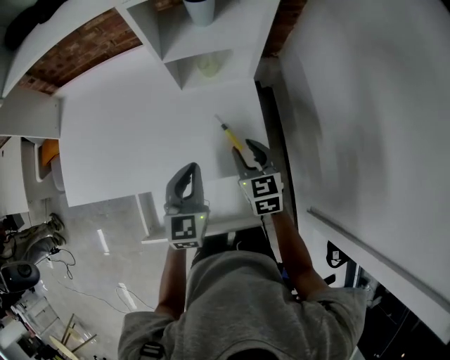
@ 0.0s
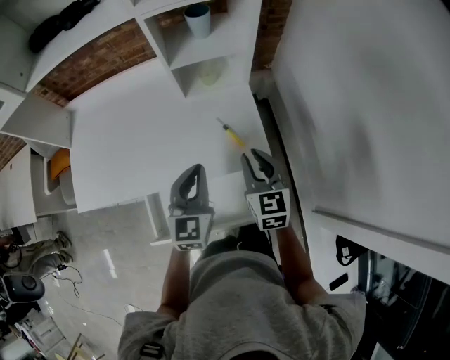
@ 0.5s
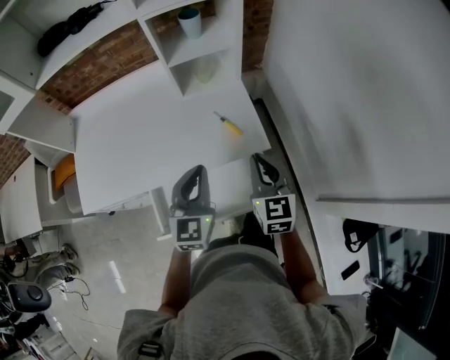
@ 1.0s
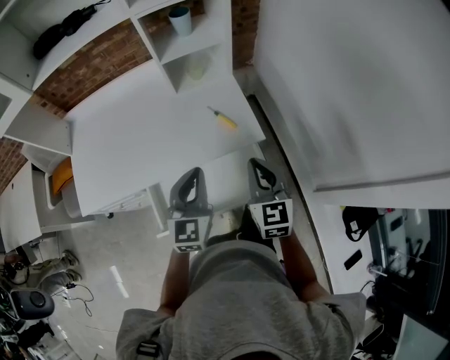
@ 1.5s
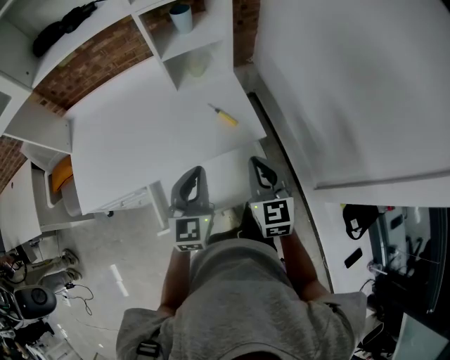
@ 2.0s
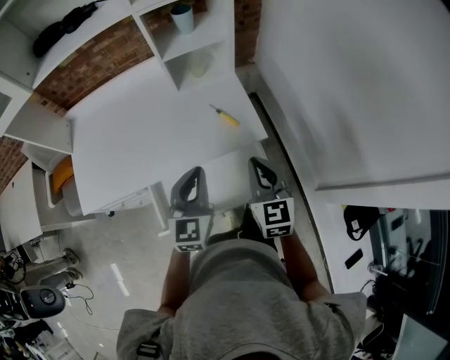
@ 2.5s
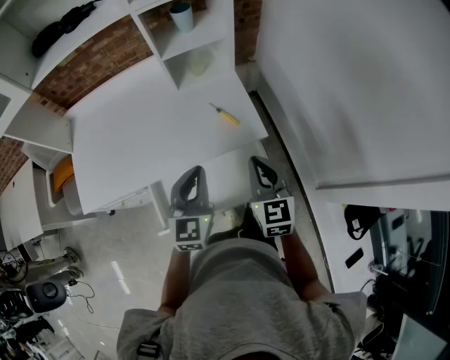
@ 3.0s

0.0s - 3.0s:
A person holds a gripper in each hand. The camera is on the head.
0.0s - 1.5s: The grippers both shift backward and upward by approximately 20 cm. The right gripper rotates some 20 degrees, and closes up.
1.5s - 3.0s: The two grippers keep their place.

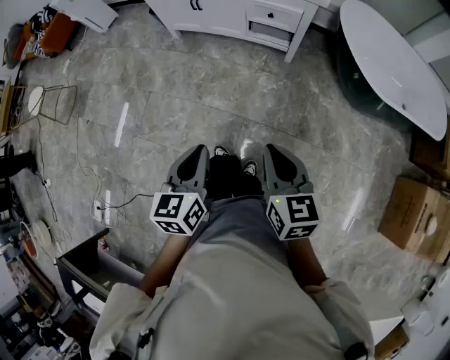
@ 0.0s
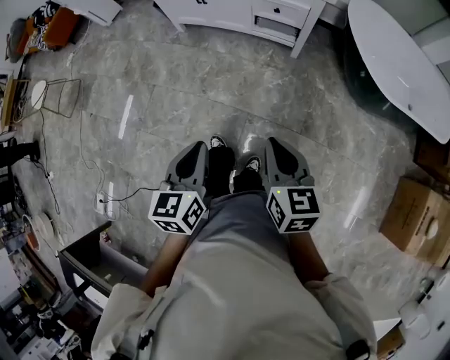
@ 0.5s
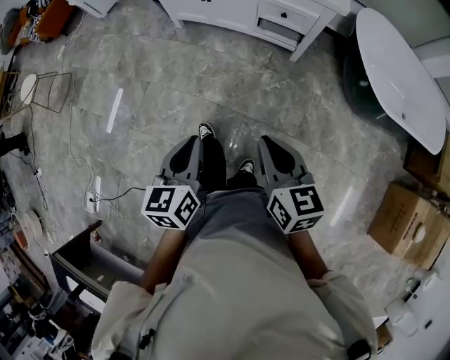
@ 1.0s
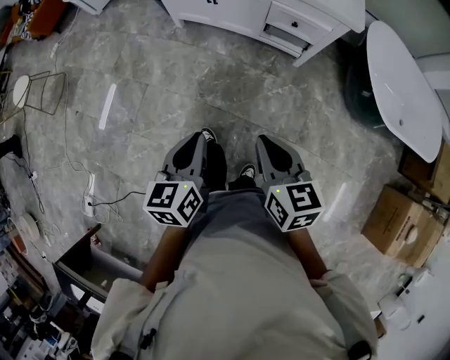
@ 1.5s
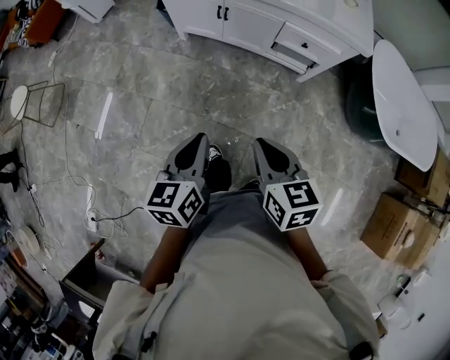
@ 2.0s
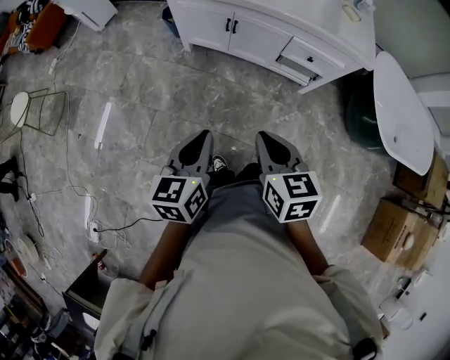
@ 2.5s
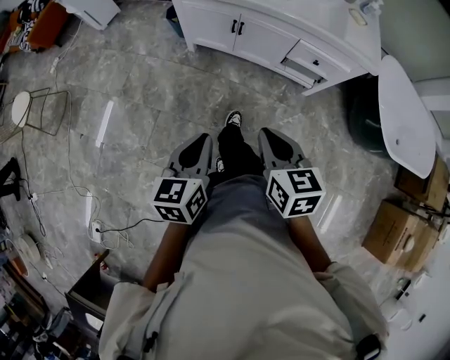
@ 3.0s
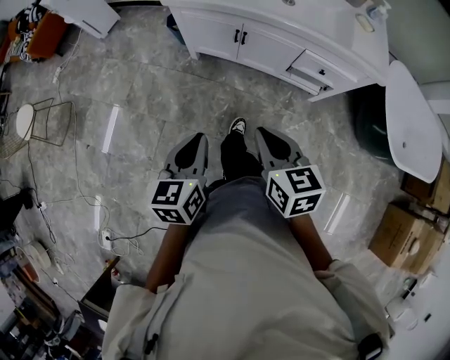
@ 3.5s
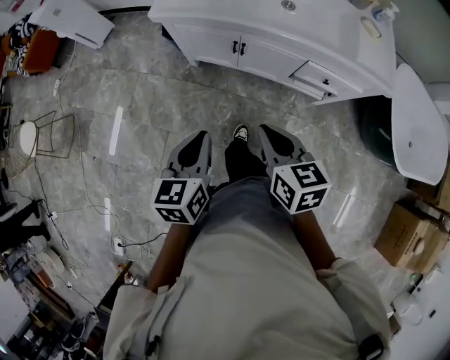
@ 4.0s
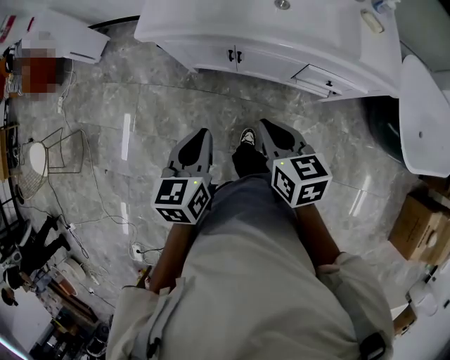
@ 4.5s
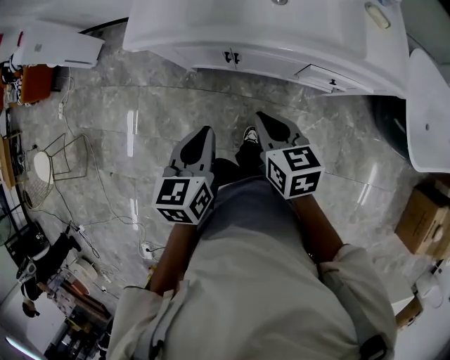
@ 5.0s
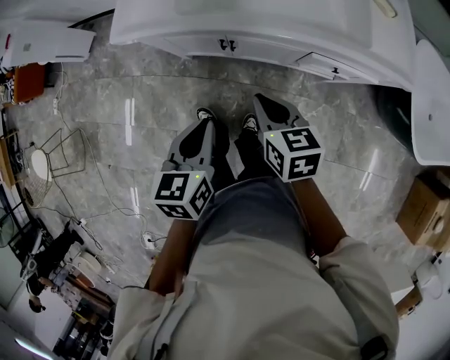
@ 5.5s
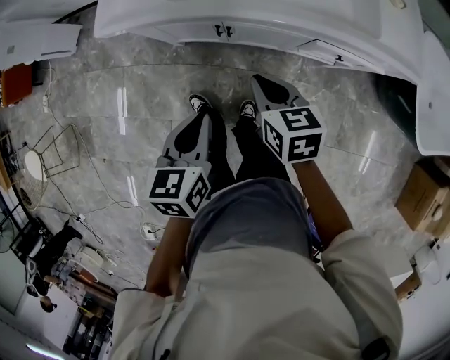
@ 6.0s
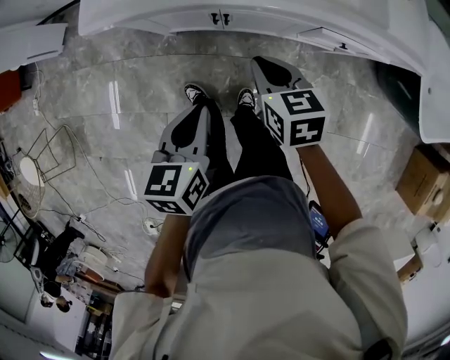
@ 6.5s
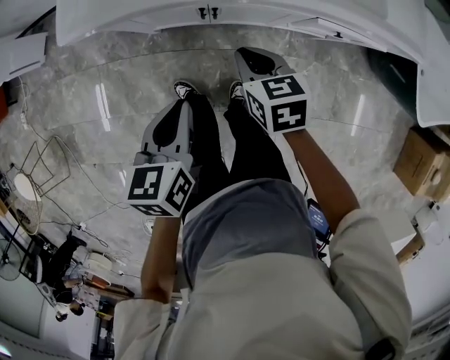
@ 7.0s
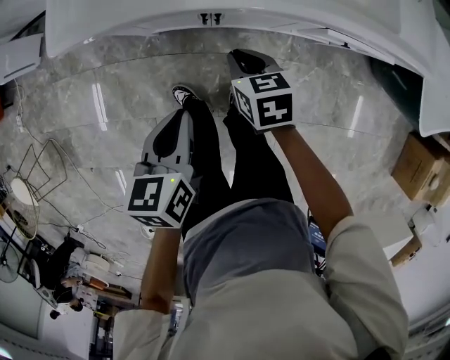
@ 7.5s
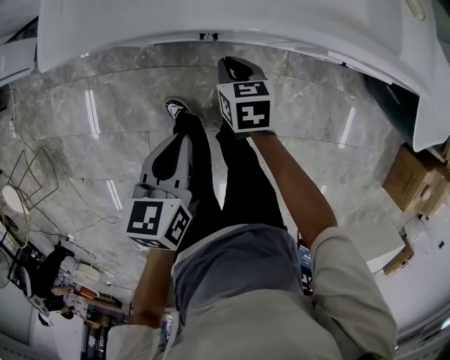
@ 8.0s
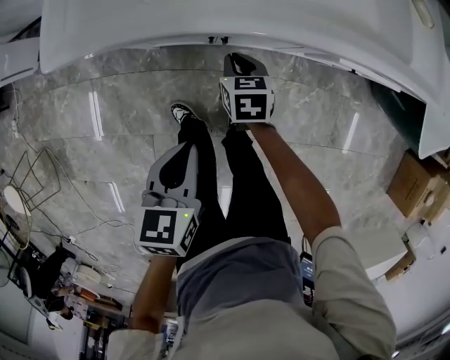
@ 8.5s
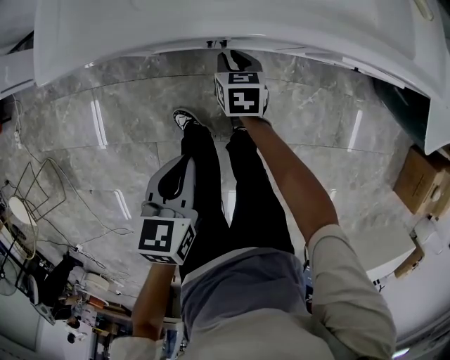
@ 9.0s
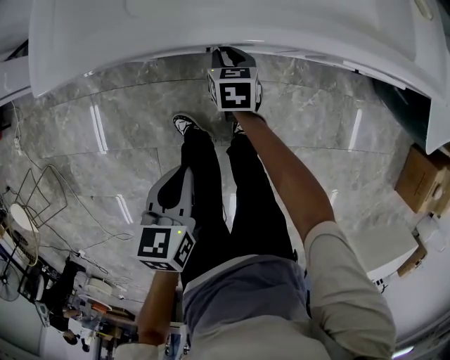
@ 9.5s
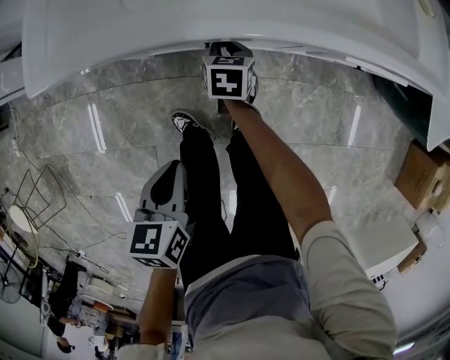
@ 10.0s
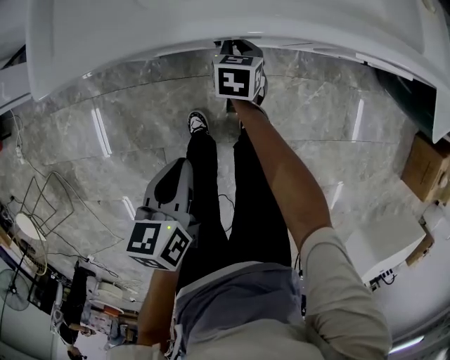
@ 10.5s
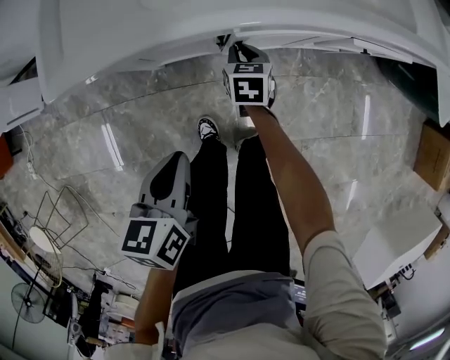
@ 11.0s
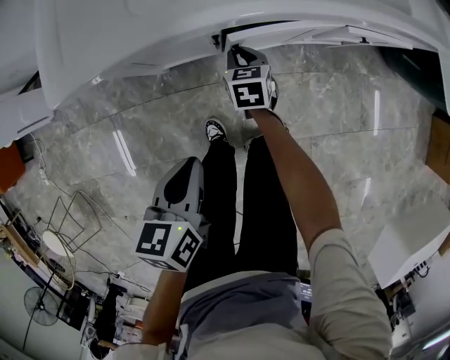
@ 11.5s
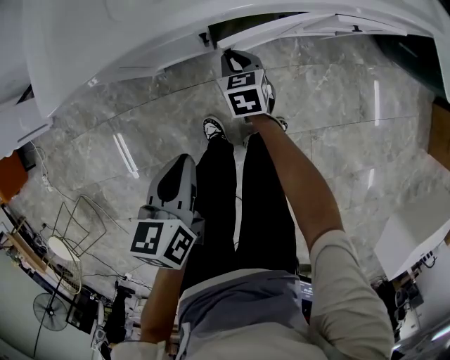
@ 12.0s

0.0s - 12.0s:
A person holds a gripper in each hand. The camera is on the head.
0.0s - 2.0s: Both grippers move forward and to the left, some 30 cm.
2.0s - 4.0s: The grippers both shift forward by roughly 25 cm.
4.0s - 6.0s: Both grippers travel together forward and downward, about 20 cm.
6.0s - 8.0s: The right gripper shifts some 20 cm downward and forward, while the left gripper travels downward and forward by approximately 10 cm.
8.0s - 10.0s: The right gripper goes some 15 cm downward and forward. The left gripper travels downward by about 5 cm.
10.0s - 12.0s: The right gripper is displaced backward by some 5 cm.

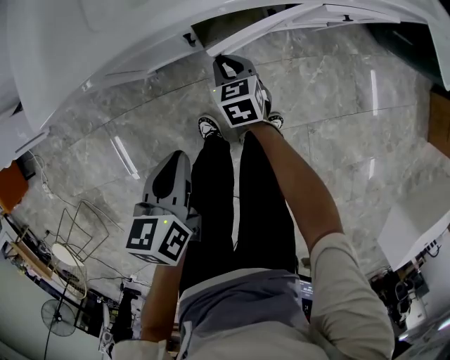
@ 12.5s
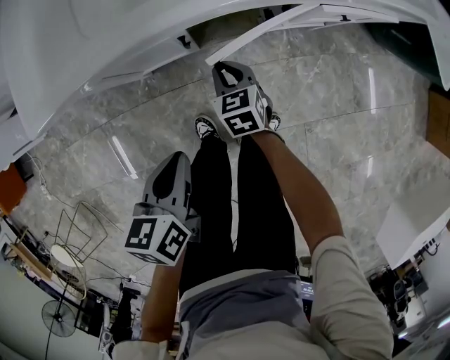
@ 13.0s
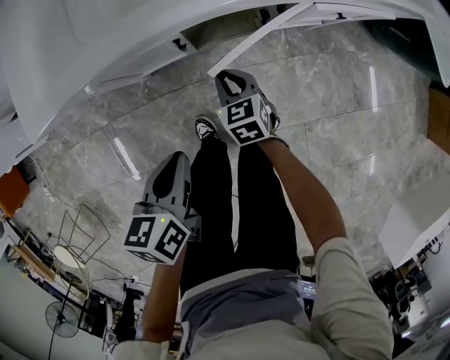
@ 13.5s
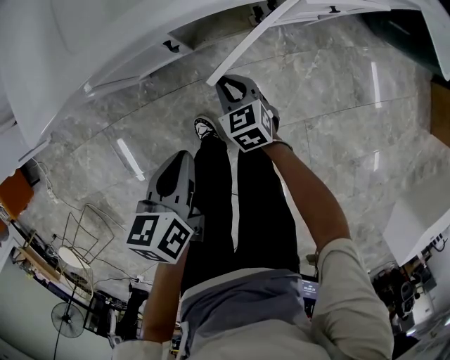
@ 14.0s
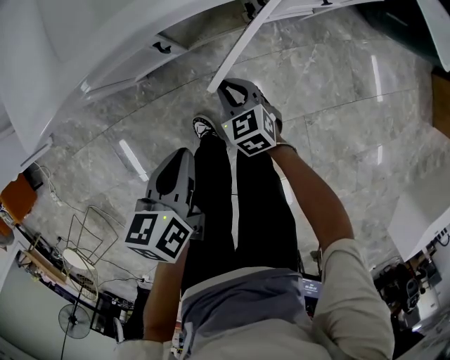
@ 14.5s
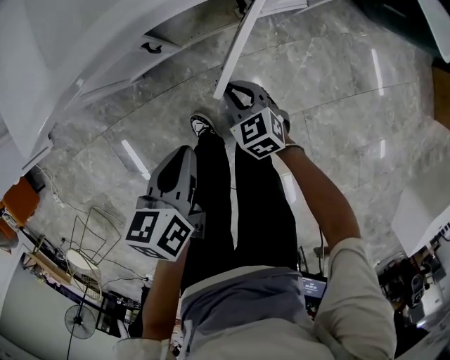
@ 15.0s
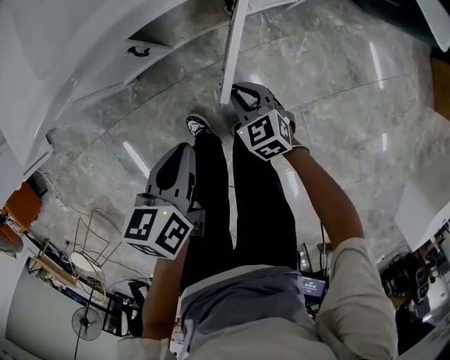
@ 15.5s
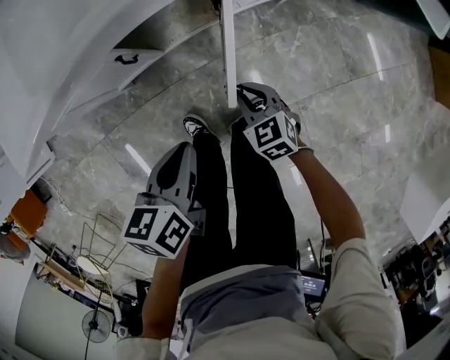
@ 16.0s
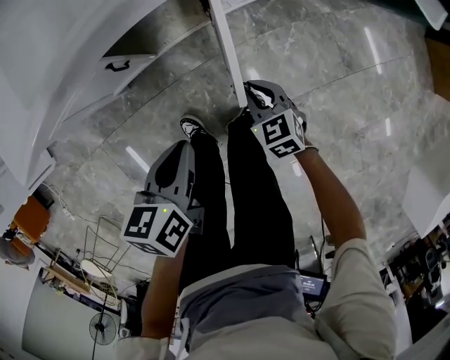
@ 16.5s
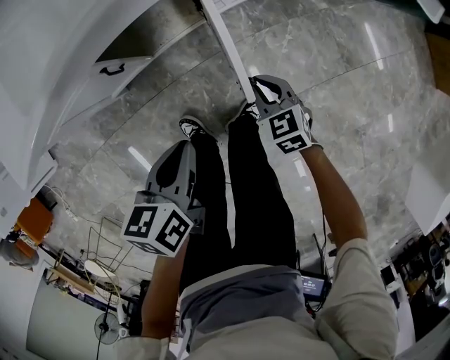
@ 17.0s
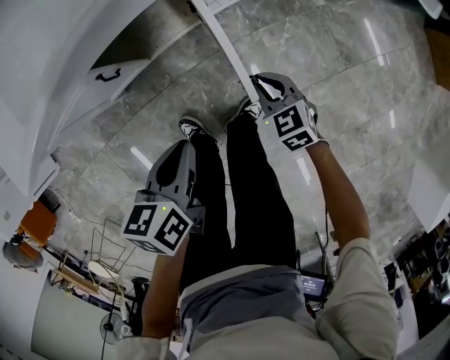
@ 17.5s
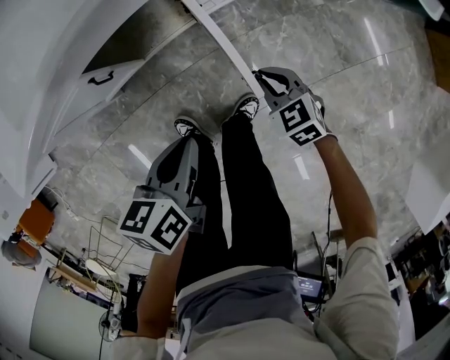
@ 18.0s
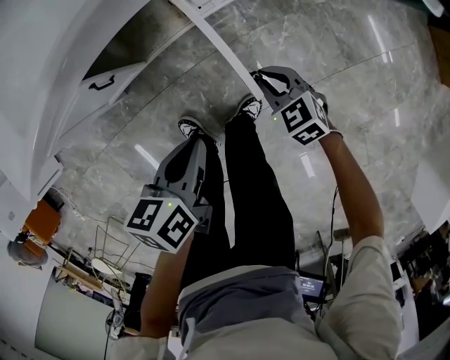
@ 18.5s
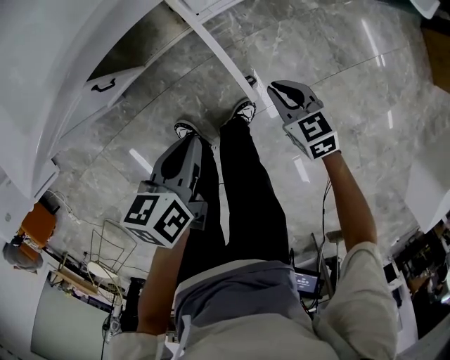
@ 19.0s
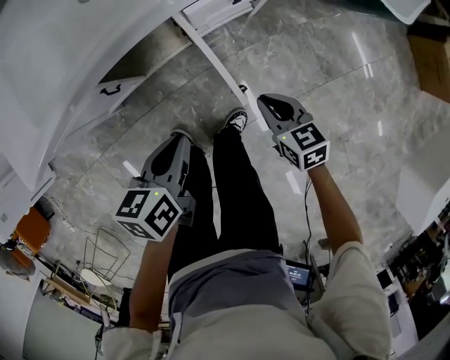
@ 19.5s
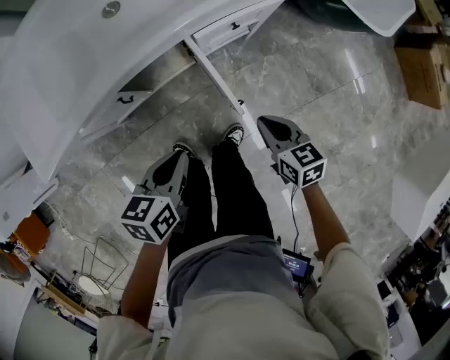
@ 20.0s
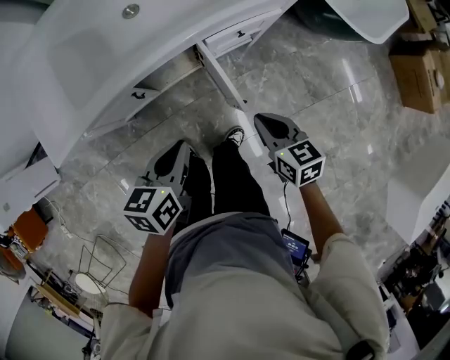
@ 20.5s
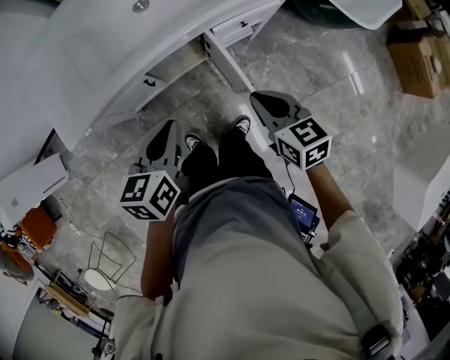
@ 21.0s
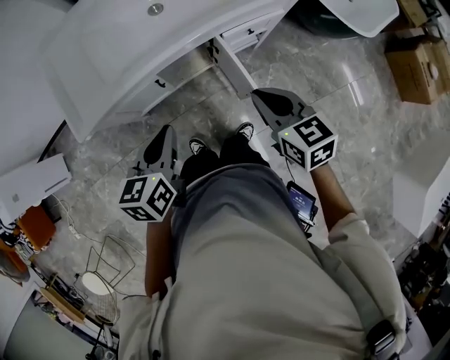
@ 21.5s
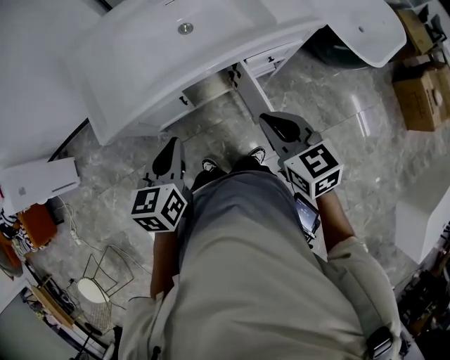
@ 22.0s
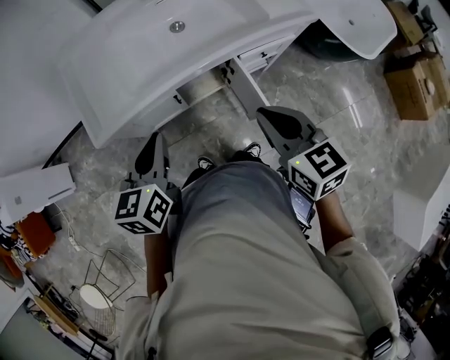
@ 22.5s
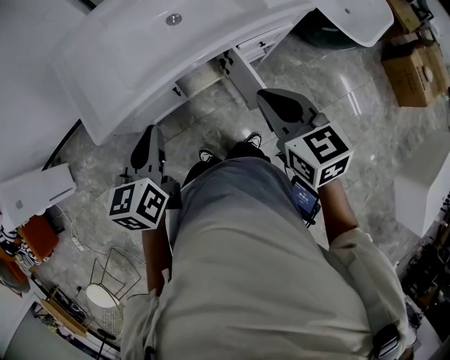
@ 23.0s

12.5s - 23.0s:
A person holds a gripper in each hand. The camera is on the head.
12.5s - 14.5s: The right gripper moves backward and to the right, approximately 10 cm. Meanwhile the left gripper travels to the right by approximately 5 cm.
14.5s - 16.5s: The left gripper heads to the right, covering about 10 cm; the right gripper shifts about 15 cm to the right.
16.5s - 19.0s: Both grippers move to the right, about 10 cm.
19.0s - 21.0s: The left gripper is displaced upward and to the left by approximately 25 cm; the right gripper moves upward, approximately 30 cm.
21.0s - 23.0s: The left gripper heads to the left and upward, covering some 15 cm, while the right gripper goes about 20 cm upward and to the left.

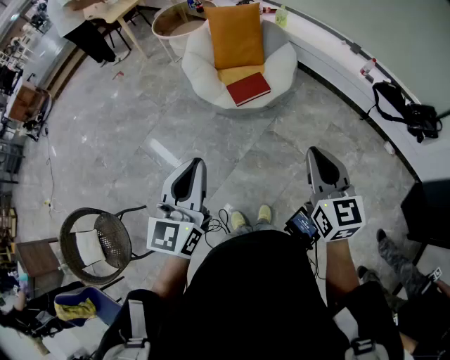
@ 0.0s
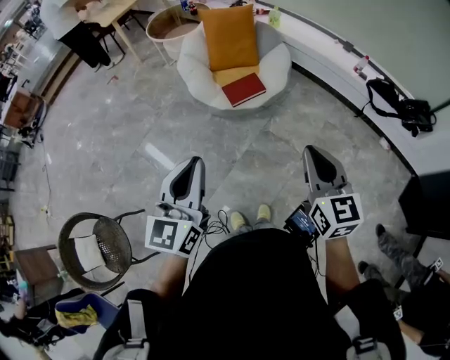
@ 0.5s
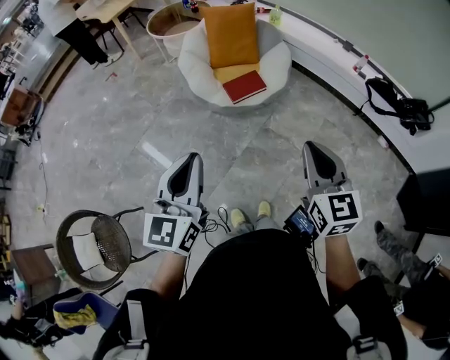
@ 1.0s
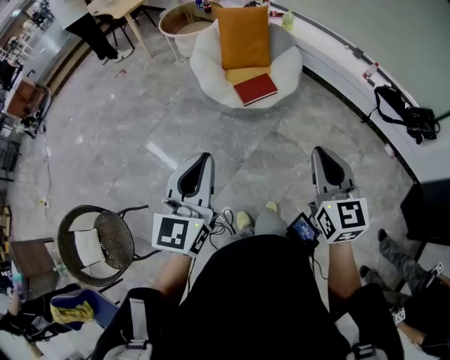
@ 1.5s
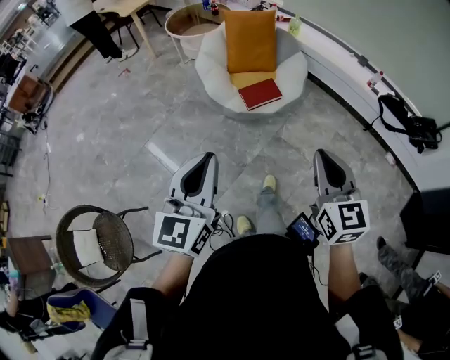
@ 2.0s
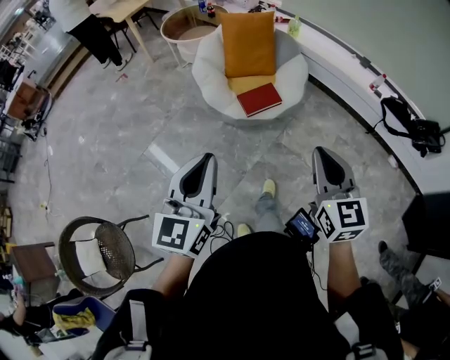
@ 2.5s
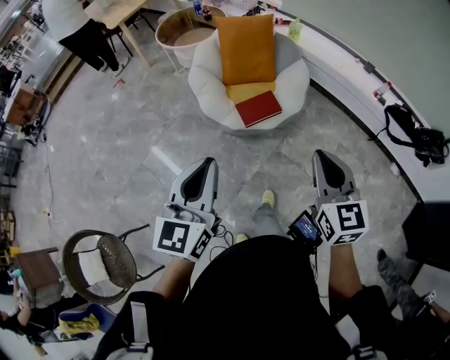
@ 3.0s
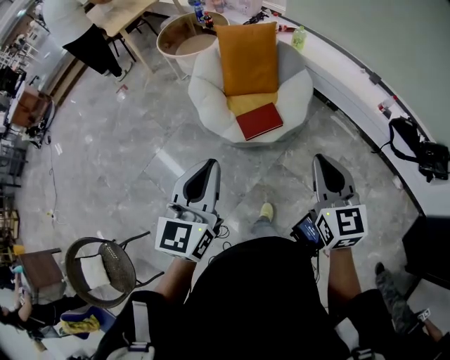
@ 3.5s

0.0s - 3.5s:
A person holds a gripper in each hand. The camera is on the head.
0.0s - 2.0s: Both grippers move to the left, some 10 cm.
2.0s - 3.5s: The two grippers go roughly 25 cm forward.
